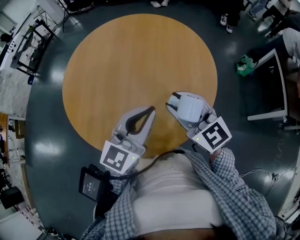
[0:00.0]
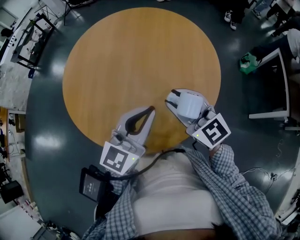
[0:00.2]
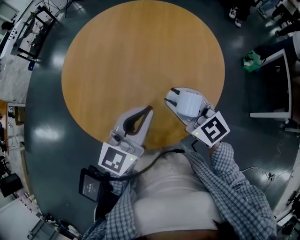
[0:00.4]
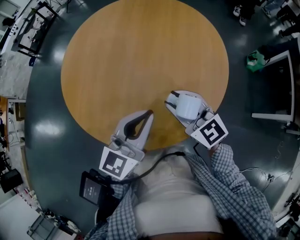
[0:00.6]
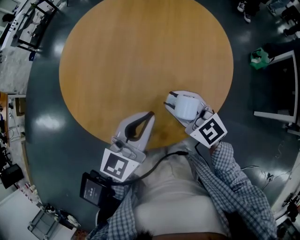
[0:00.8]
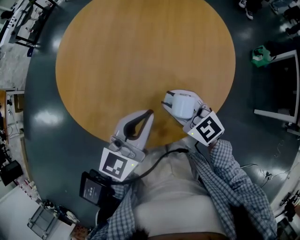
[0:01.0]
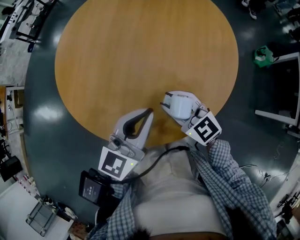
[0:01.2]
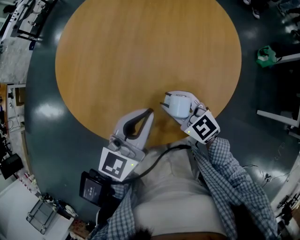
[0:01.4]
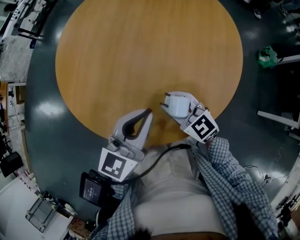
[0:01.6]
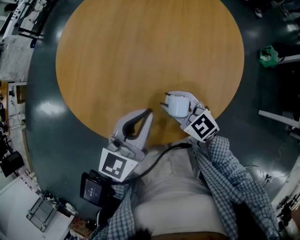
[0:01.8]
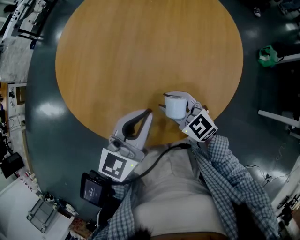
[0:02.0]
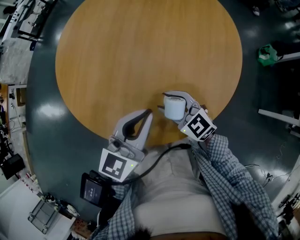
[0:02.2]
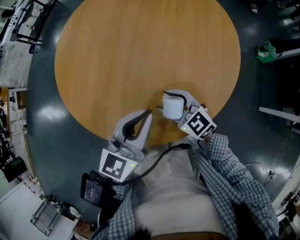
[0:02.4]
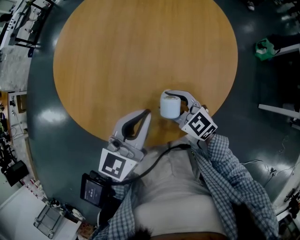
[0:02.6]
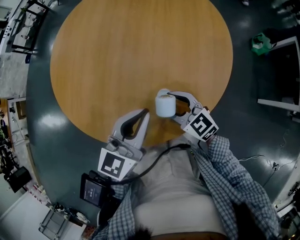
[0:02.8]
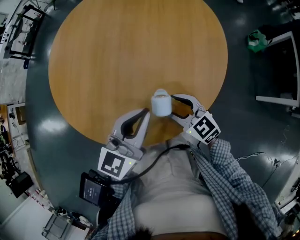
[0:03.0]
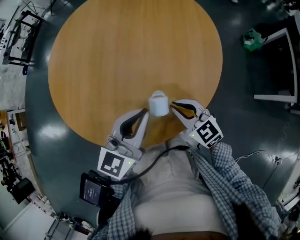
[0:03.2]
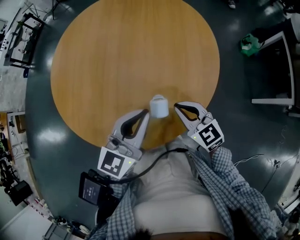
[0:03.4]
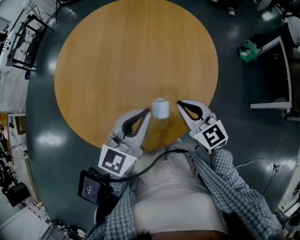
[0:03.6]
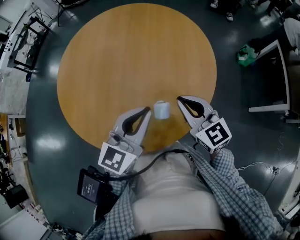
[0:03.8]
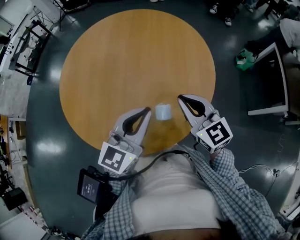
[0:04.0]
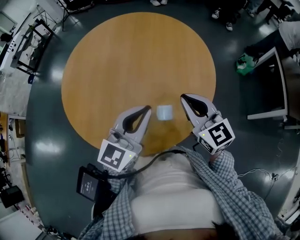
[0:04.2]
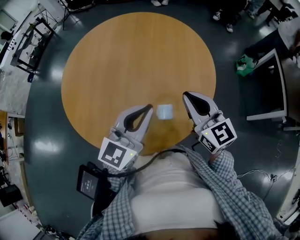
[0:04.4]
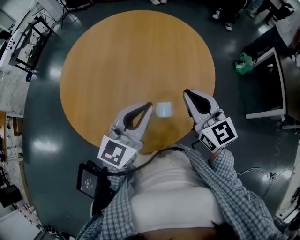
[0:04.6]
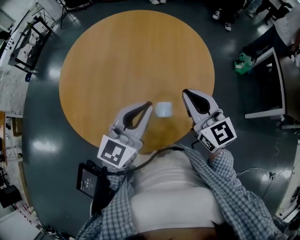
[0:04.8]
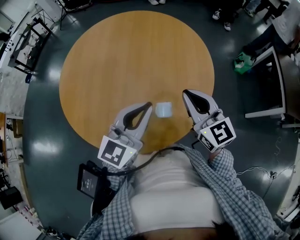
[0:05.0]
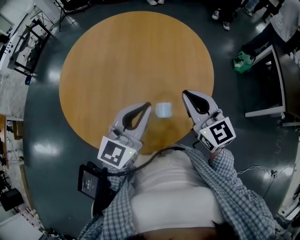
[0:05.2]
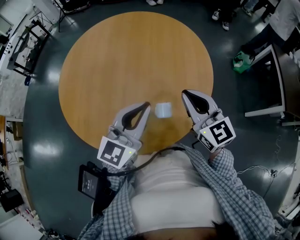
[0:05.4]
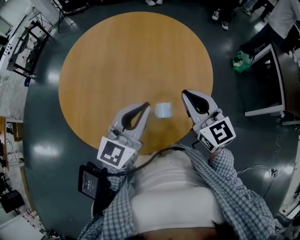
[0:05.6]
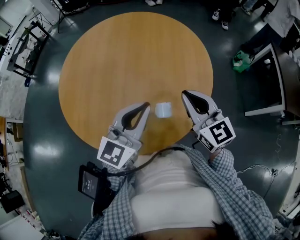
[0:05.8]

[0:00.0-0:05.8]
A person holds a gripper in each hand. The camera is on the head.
0:00.0 to 0:01.4: The right gripper heads downward, covering some 15 cm, while the left gripper shifts about 10 cm downward.
0:01.4 to 0:02.8: The right gripper shifts by some 5 cm.
0:02.8 to 0:04.4: The right gripper travels upward and to the right by roughly 20 cm, changes its angle by some 30 degrees, and closes its fingers. Meanwhile the left gripper heads upward, covering roughly 5 cm.
0:04.4 to 0:05.8: The two grippers keep their place.

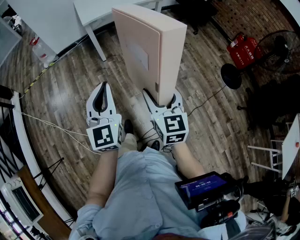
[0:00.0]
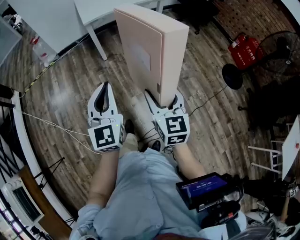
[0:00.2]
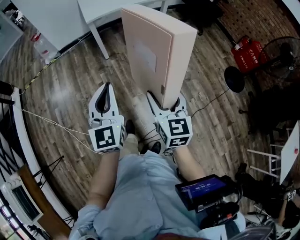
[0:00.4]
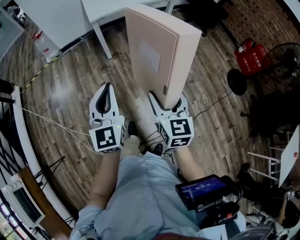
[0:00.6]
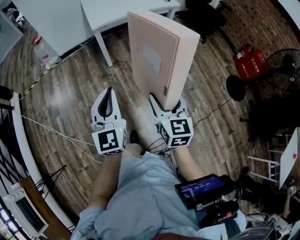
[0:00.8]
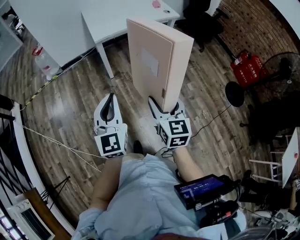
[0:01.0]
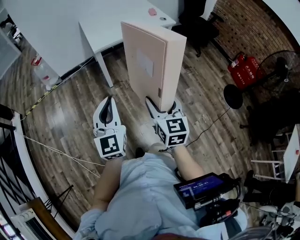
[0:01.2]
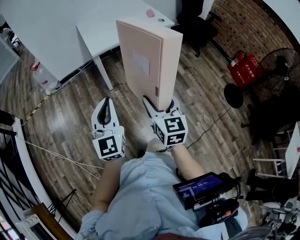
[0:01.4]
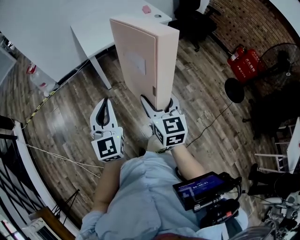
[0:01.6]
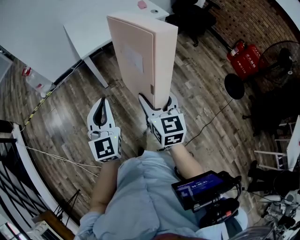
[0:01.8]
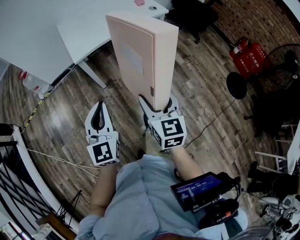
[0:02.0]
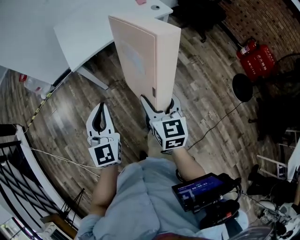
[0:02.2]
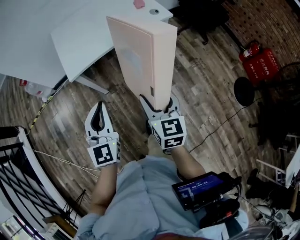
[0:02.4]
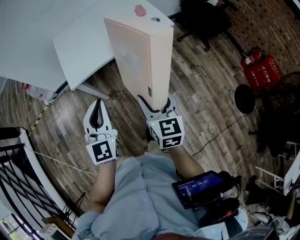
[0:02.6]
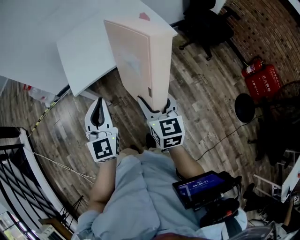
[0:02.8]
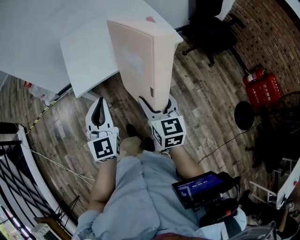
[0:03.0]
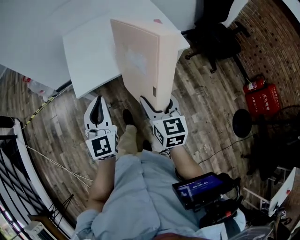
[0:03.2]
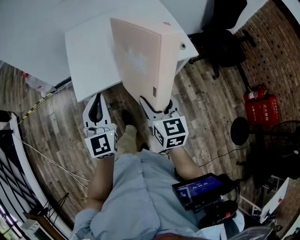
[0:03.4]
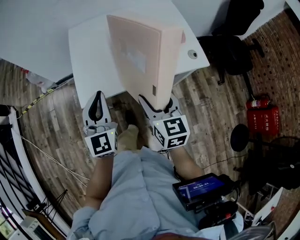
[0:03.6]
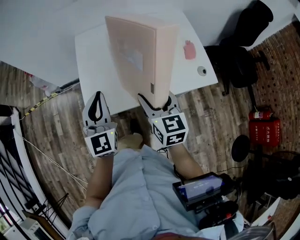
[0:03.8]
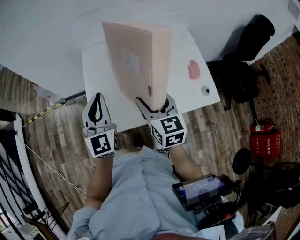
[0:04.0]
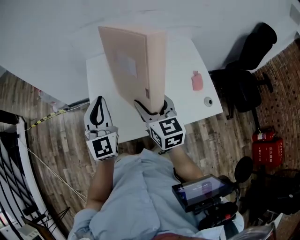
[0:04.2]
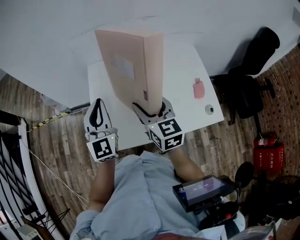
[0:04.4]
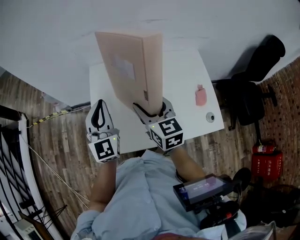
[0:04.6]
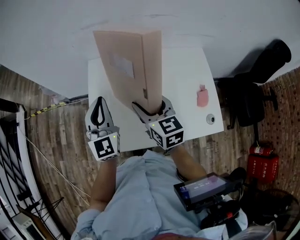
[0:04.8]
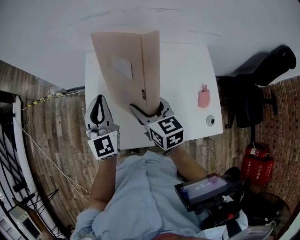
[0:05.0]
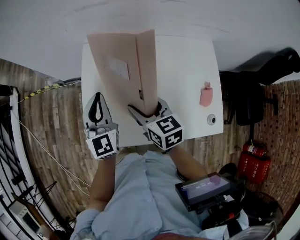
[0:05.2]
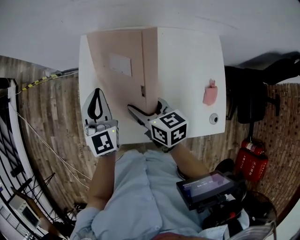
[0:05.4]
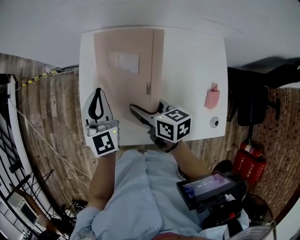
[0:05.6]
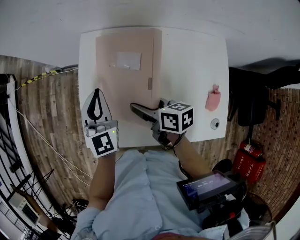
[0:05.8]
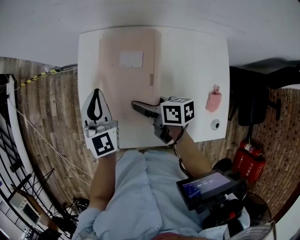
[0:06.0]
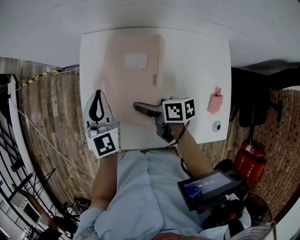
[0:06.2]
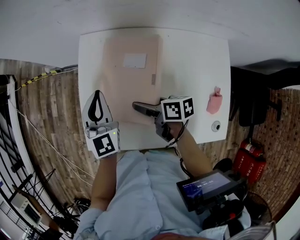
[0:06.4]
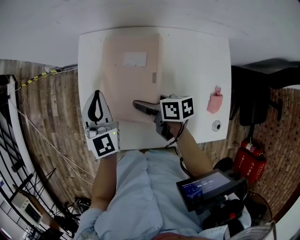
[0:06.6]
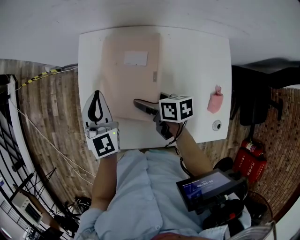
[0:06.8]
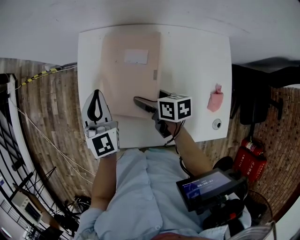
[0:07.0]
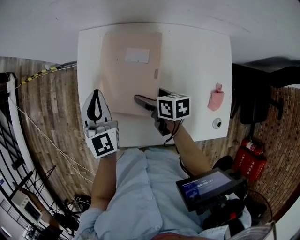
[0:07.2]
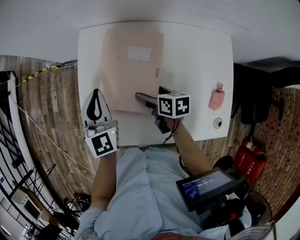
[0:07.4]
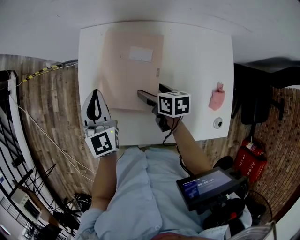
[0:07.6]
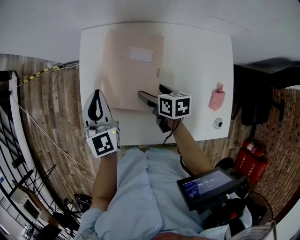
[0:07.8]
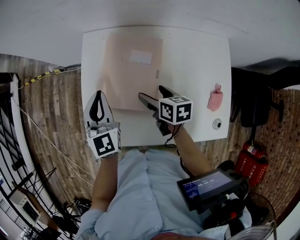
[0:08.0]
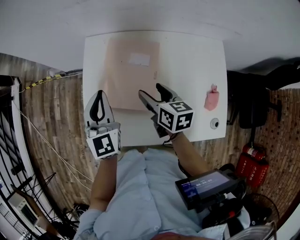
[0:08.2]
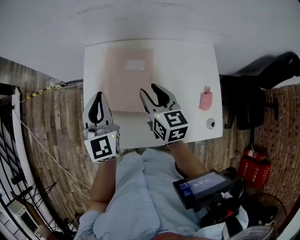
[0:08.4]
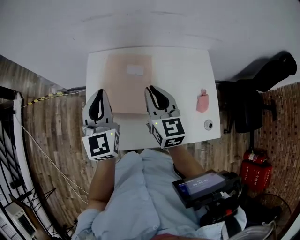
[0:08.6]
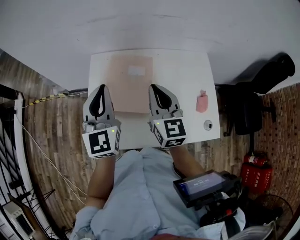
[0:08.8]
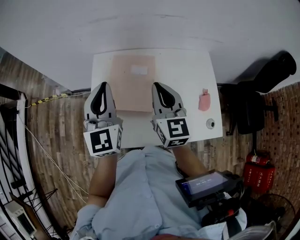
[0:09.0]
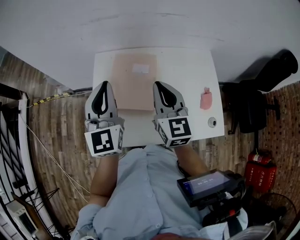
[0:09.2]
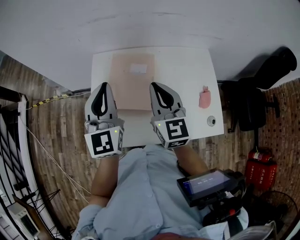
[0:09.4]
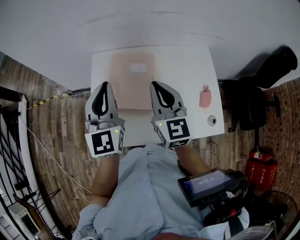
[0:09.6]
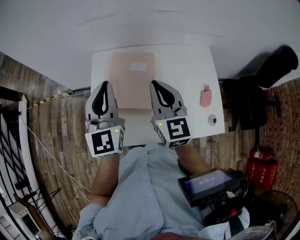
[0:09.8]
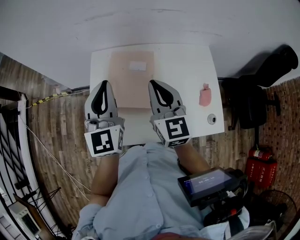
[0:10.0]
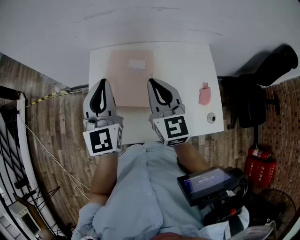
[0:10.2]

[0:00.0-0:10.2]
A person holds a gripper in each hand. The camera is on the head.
0:00.0 to 0:01.4: Both grippers travel together forward and to the left, some 25 cm.
0:01.4 to 0:03.0: The pair of grippers is taken forward, about 40 cm.
0:03.0 to 0:04.4: The pair of grippers is taken forward, some 40 cm. The right gripper rotates some 20 degrees.
0:04.4 to 0:05.8: Both grippers travel together downward, some 15 cm. The left gripper turns by some 20 degrees; the right gripper turns by approximately 50 degrees.
0:05.8 to 0:07.2: The right gripper heads downward, covering about 5 cm, and opens its fingers.
0:07.2 to 0:08.8: The right gripper heads upward, covering some 25 cm, angles its fingers upward, by about 30 degrees, and closes up; the left gripper moves upward, about 15 cm.
0:08.8 to 0:10.2: There are only small adjustments of the grippers.

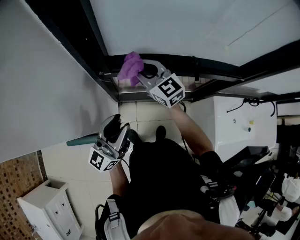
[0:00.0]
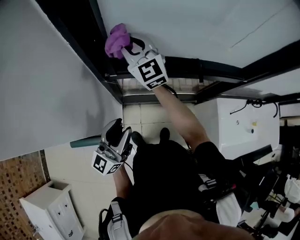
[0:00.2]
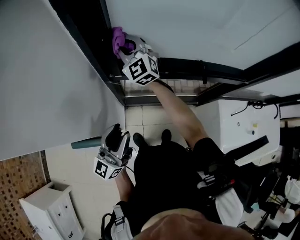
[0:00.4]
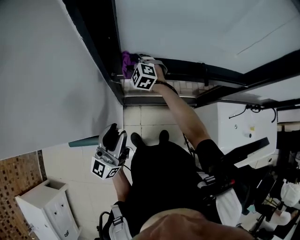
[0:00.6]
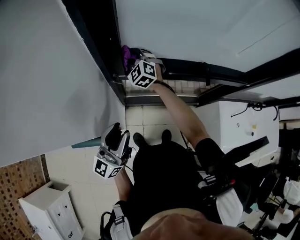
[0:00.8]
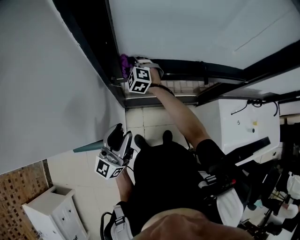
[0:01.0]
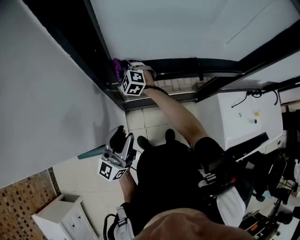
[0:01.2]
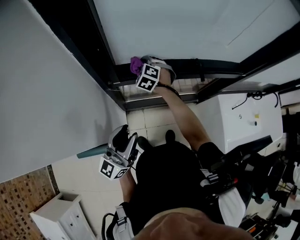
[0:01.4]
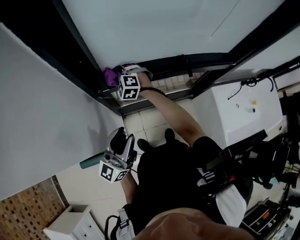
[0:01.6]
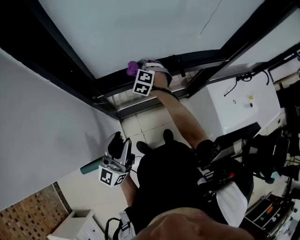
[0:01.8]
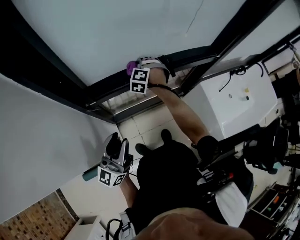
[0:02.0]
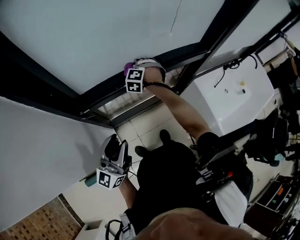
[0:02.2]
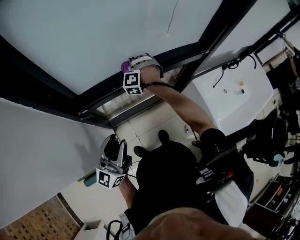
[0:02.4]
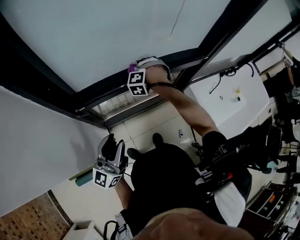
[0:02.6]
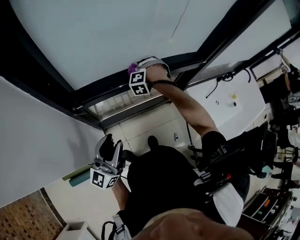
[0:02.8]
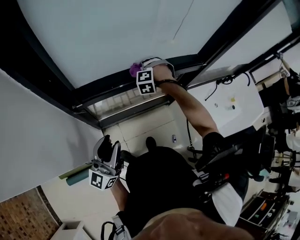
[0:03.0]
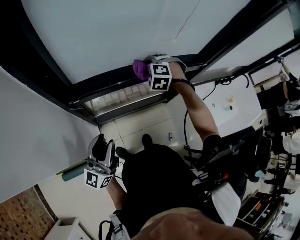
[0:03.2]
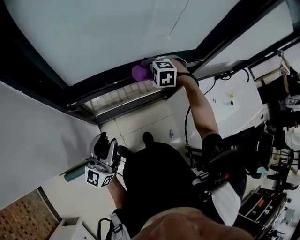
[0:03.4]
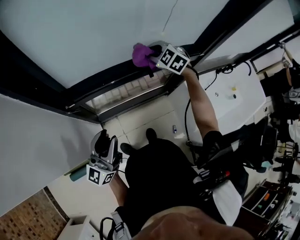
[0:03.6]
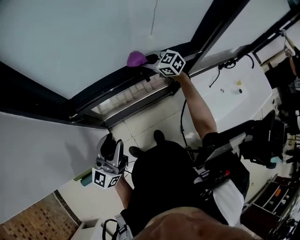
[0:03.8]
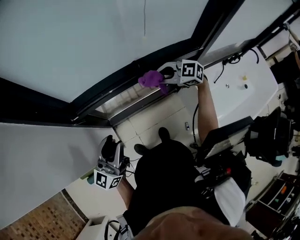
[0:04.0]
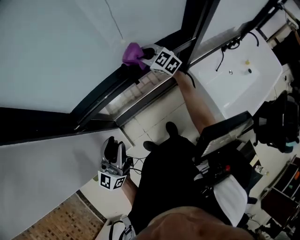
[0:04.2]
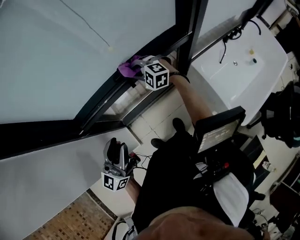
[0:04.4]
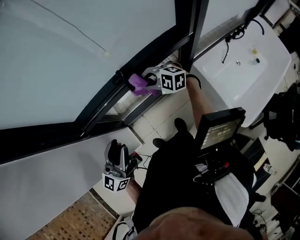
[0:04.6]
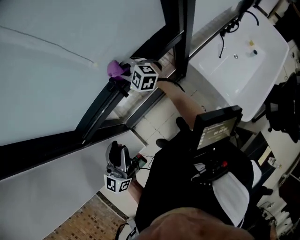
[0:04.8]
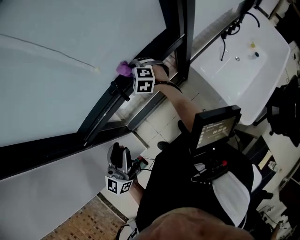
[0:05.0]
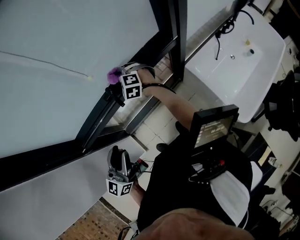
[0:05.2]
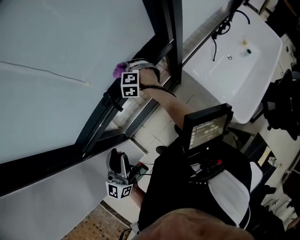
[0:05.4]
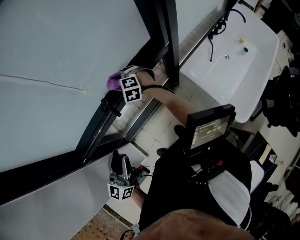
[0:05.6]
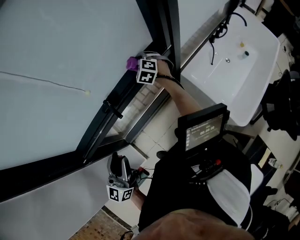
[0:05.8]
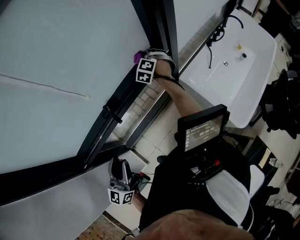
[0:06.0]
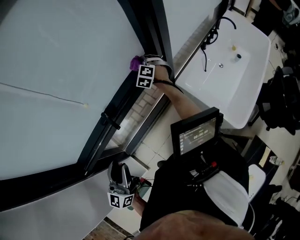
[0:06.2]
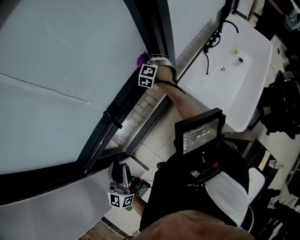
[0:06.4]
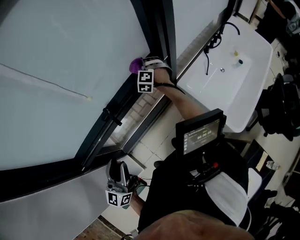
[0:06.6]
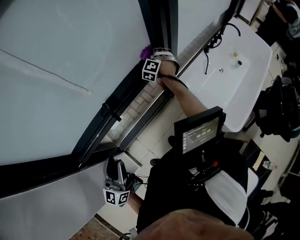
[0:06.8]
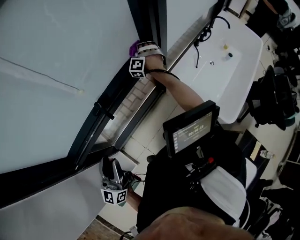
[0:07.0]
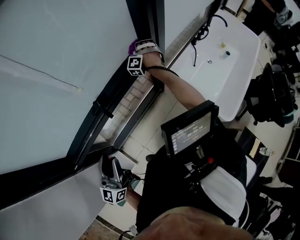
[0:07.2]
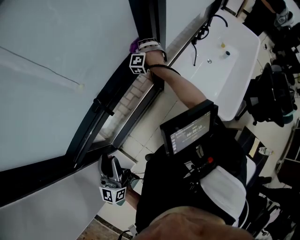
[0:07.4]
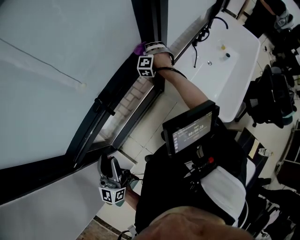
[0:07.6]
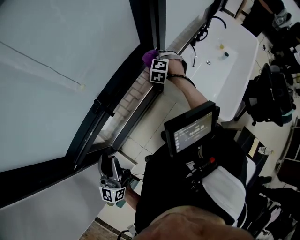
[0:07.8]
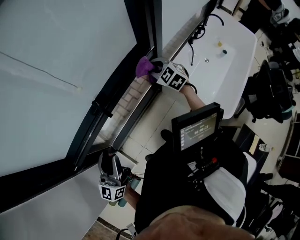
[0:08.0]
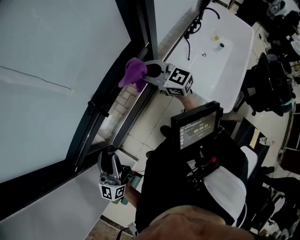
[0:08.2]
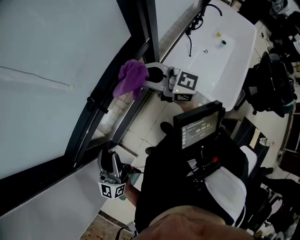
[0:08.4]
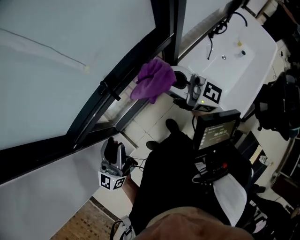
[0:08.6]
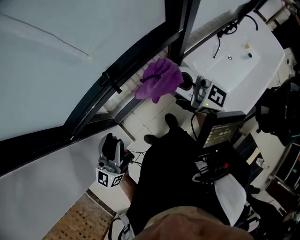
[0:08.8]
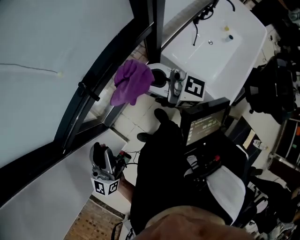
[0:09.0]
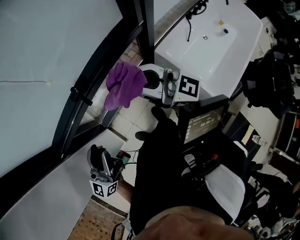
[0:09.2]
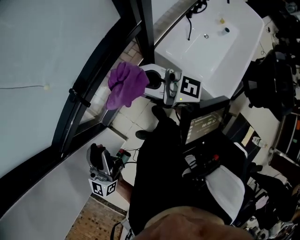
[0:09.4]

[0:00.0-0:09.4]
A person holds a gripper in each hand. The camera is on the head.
0:00.0 to 0:01.6: The right gripper heads downward, forward and to the left, covering some 15 cm, and rotates some 50 degrees.
0:01.6 to 0:03.2: The right gripper shifts by about 30 cm, and swivels approximately 30 degrees.
0:03.2 to 0:04.8: The right gripper moves up and down over roughly 10 cm, changing direction 2 times, and angles its fingers upward, by approximately 30 degrees, while the left gripper ends up about 20 cm from where it was.
0:04.8 to 0:06.2: The left gripper moves about 5 cm. The right gripper shifts by approximately 30 cm, and turns by approximately 50 degrees.
0:06.2 to 0:07.8: The right gripper heads to the right and backward, covering some 10 cm.
0:07.8 to 0:09.4: The left gripper ends up approximately 10 cm from where it was; the right gripper ends up about 30 cm from where it was, and tips its fingers upward by approximately 70 degrees.
